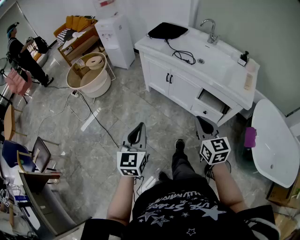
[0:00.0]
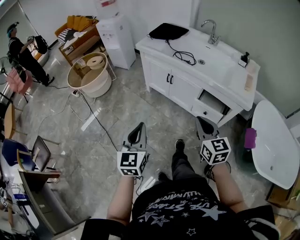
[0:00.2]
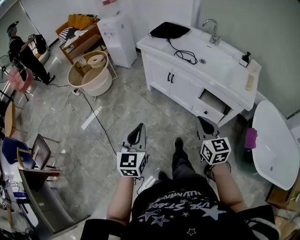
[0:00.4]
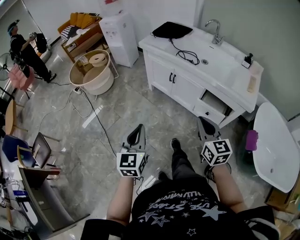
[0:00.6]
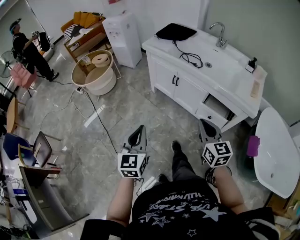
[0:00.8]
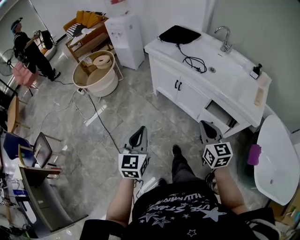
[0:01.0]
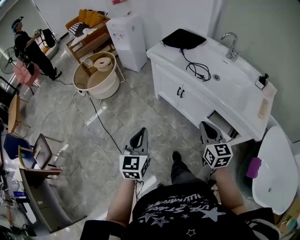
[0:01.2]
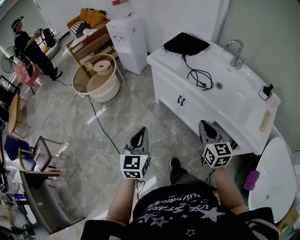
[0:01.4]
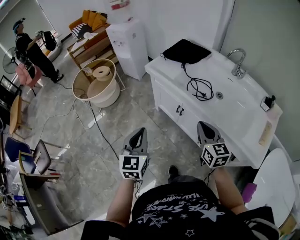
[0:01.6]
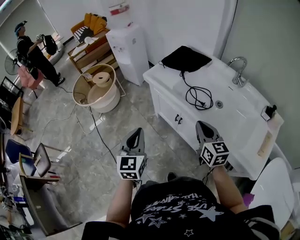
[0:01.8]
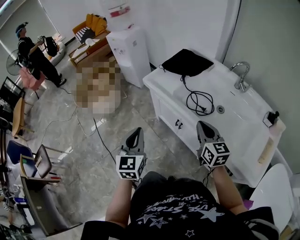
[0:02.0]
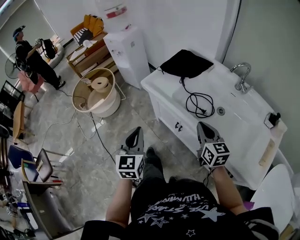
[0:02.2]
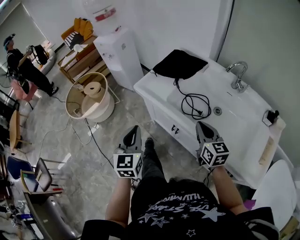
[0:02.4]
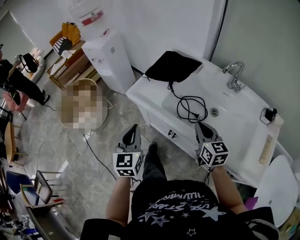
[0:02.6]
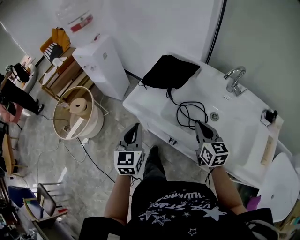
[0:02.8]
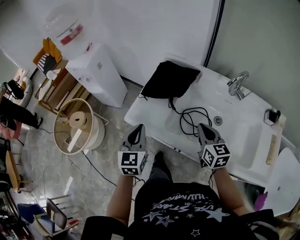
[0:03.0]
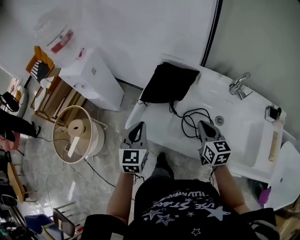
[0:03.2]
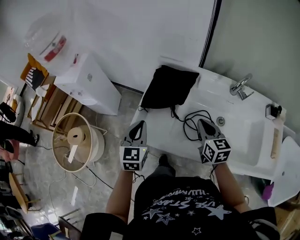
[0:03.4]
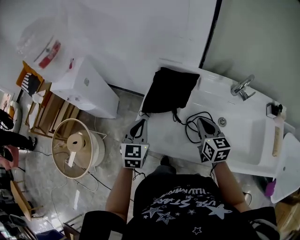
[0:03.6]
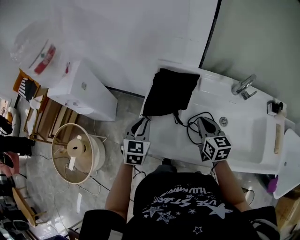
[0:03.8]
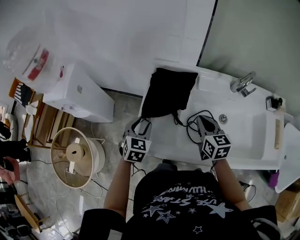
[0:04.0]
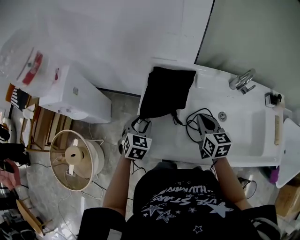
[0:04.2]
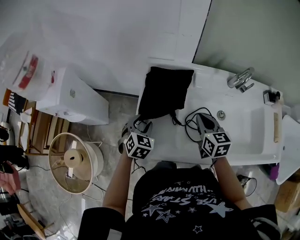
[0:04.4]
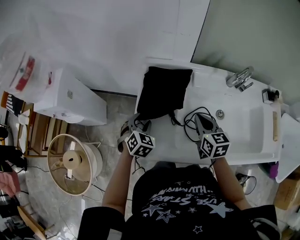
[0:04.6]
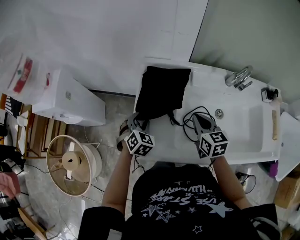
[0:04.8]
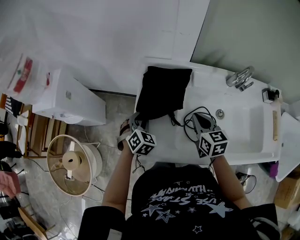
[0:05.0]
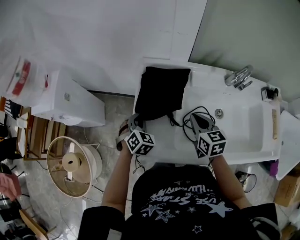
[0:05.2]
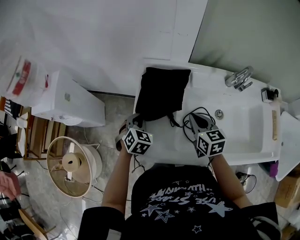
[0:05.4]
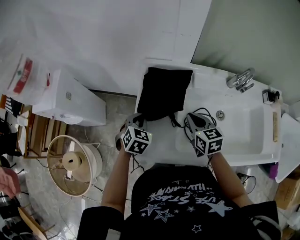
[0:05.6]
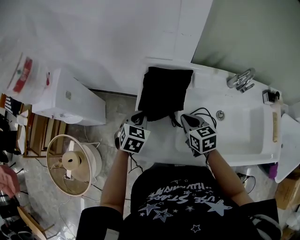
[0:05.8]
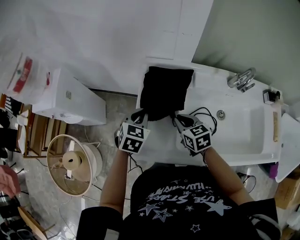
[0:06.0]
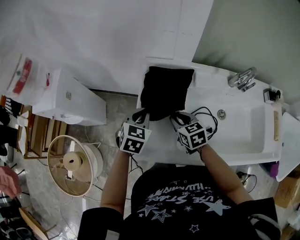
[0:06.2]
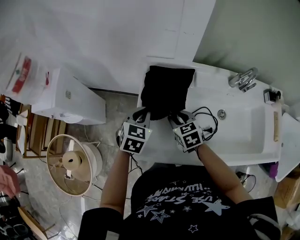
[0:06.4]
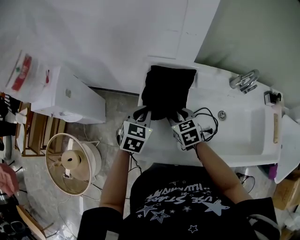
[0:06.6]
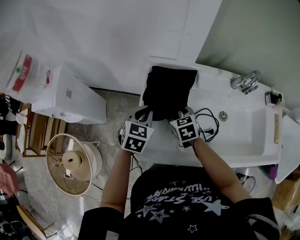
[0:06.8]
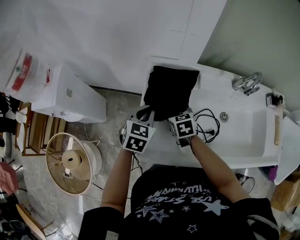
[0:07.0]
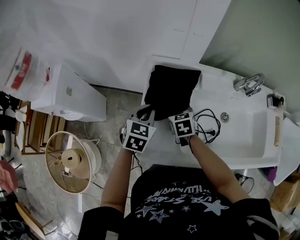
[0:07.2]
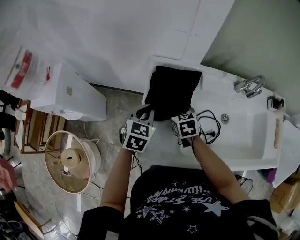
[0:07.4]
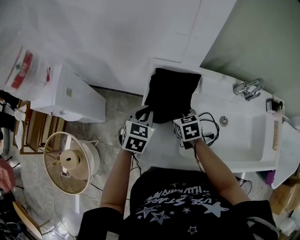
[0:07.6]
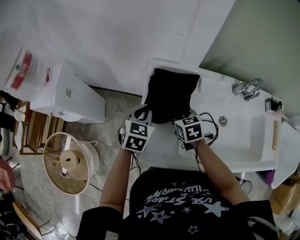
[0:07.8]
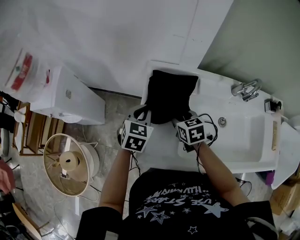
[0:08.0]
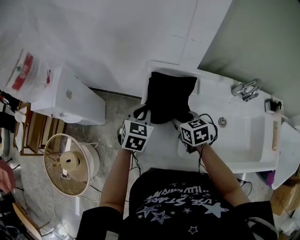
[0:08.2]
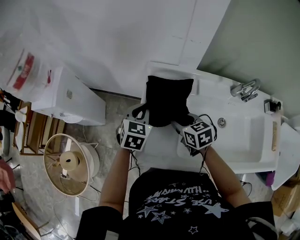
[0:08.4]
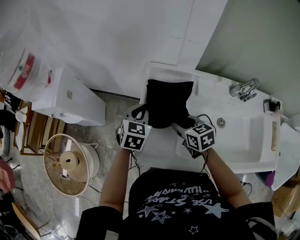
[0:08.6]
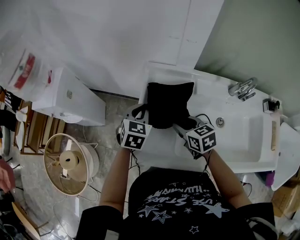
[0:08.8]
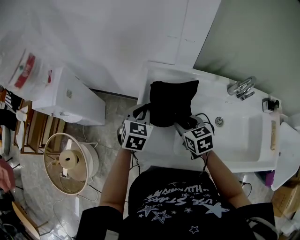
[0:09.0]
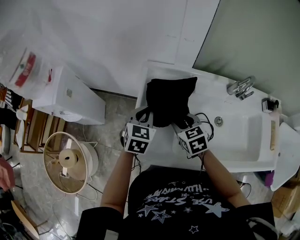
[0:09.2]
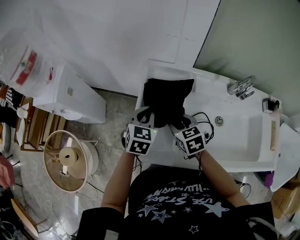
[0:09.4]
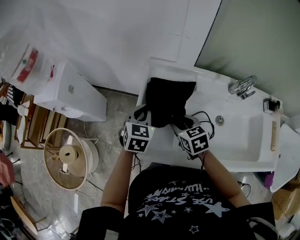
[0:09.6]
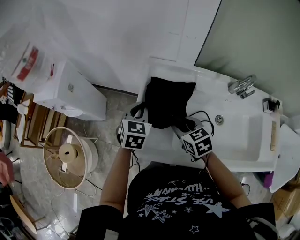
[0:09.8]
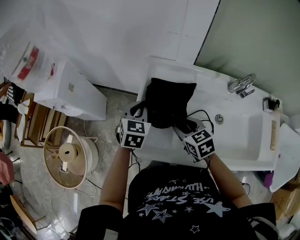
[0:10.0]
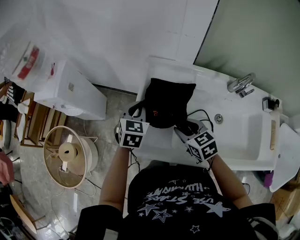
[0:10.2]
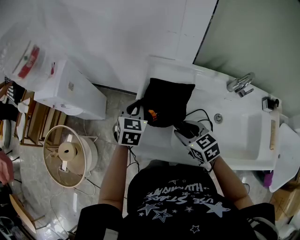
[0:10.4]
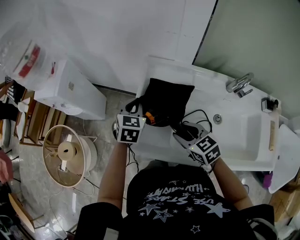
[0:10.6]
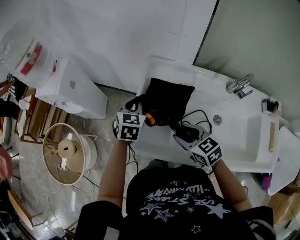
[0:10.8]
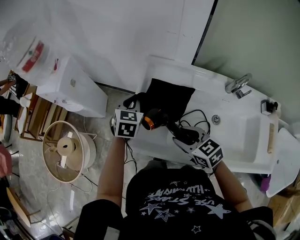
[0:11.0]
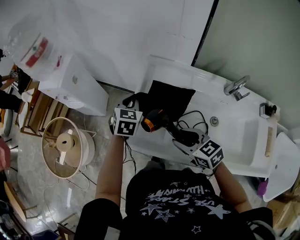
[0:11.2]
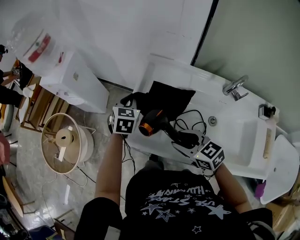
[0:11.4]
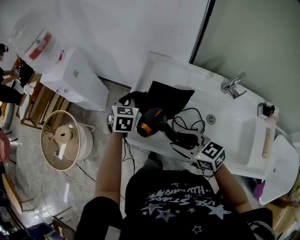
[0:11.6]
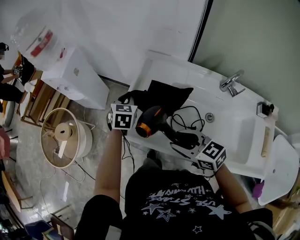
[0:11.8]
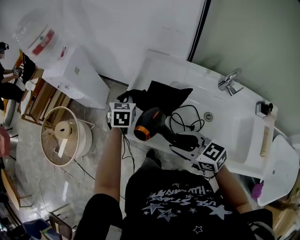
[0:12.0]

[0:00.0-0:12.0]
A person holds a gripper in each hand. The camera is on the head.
0:00.0 to 0:01.6: Both grippers travel together forward, some 30 cm.
0:01.6 to 0:03.0: Both grippers travel together forward, roughly 35 cm.
0:03.0 to 0:04.4: The right gripper moves forward, some 10 cm, while the left gripper moves forward and downward, about 25 cm, swivels about 40 degrees, and opens its fingers.
0:04.4 to 0:06.0: The right gripper heads to the left and downward, covering approximately 10 cm. Meanwhile the left gripper shifts by some 5 cm, and closes its fingers.
0:06.0 to 0:07.6: The right gripper shifts approximately 5 cm forward, and opens.
0:07.6 to 0:09.0: The right gripper heads backward and upward, covering roughly 10 cm.
0:09.0 to 0:10.4: The right gripper goes approximately 5 cm backward.
0:10.4 to 0:12.0: The right gripper travels backward and upward by approximately 15 cm, and swivels approximately 30 degrees.

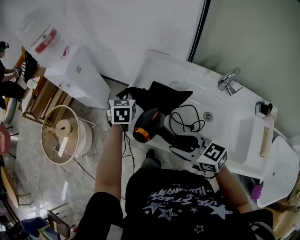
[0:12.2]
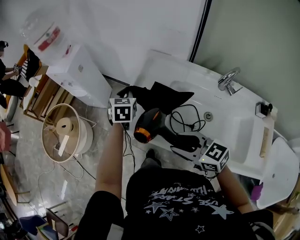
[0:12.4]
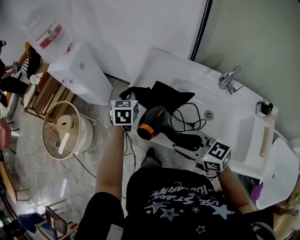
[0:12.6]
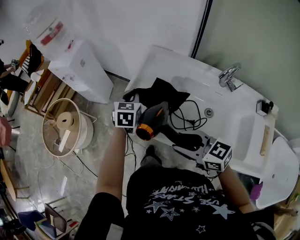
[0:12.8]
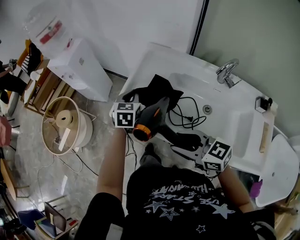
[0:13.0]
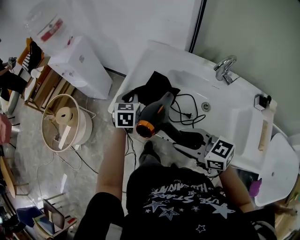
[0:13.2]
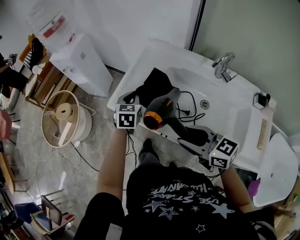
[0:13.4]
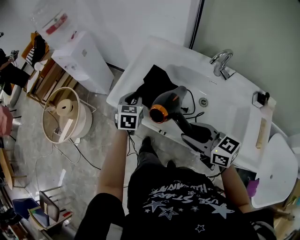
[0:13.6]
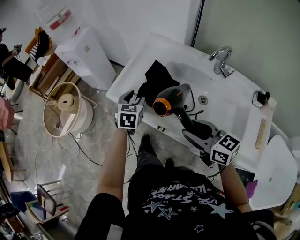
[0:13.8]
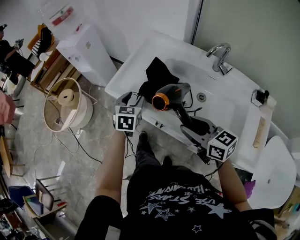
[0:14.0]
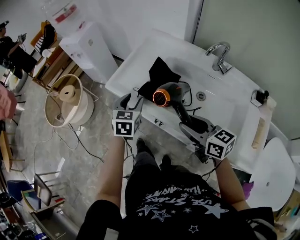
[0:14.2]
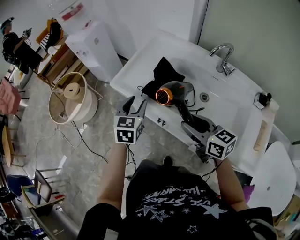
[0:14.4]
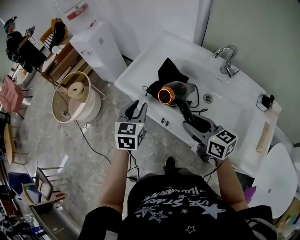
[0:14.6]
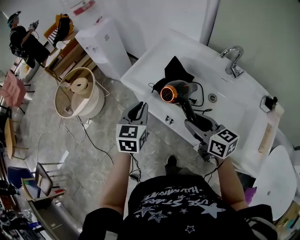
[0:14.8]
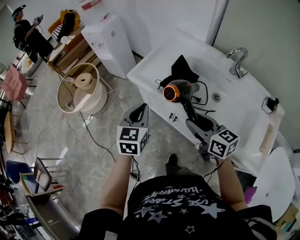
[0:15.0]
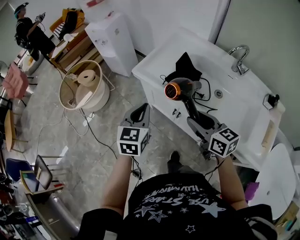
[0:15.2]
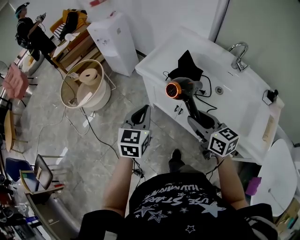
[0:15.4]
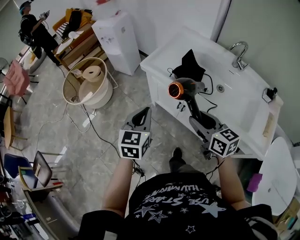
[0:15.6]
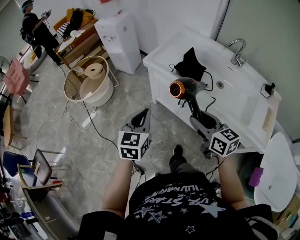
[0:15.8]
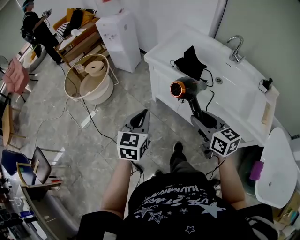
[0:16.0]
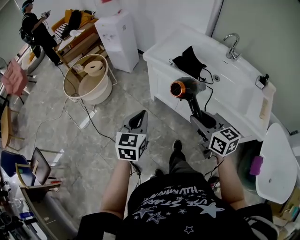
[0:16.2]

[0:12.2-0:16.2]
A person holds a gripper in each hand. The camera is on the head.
0:12.2 to 0:13.6: The left gripper travels backward by approximately 15 cm. Meanwhile the right gripper travels backward and to the right by about 10 cm.
0:13.6 to 0:14.8: The left gripper moves backward, approximately 15 cm, and opens and closes again.
0:14.8 to 0:16.2: Both grippers move backward and to the left, about 25 cm.

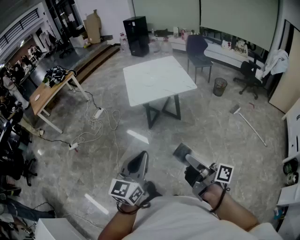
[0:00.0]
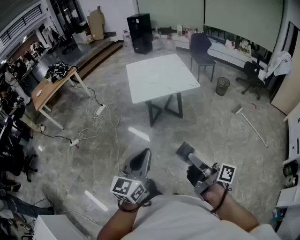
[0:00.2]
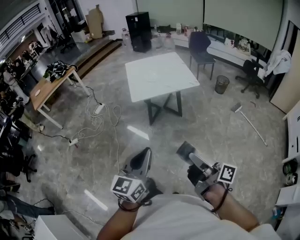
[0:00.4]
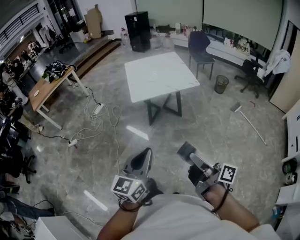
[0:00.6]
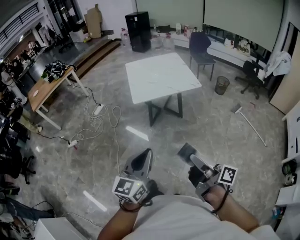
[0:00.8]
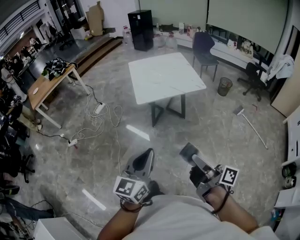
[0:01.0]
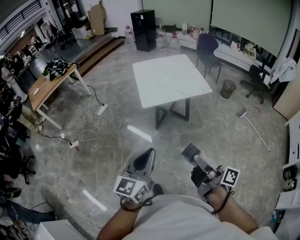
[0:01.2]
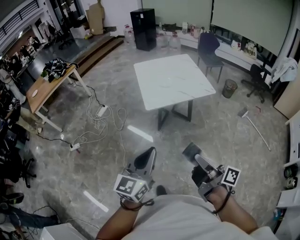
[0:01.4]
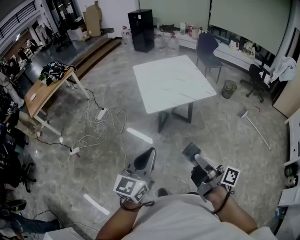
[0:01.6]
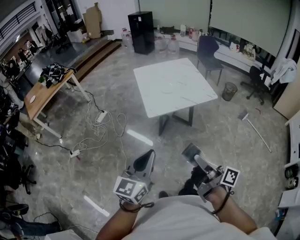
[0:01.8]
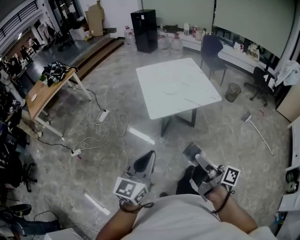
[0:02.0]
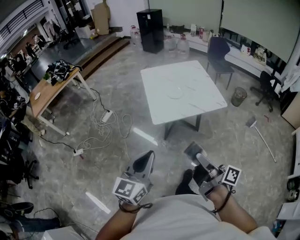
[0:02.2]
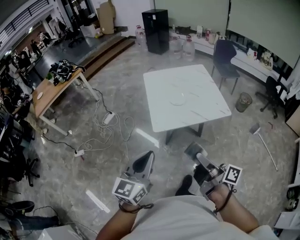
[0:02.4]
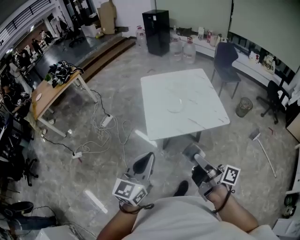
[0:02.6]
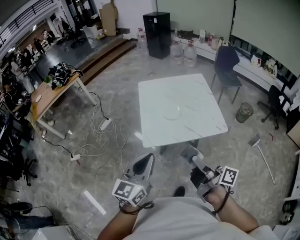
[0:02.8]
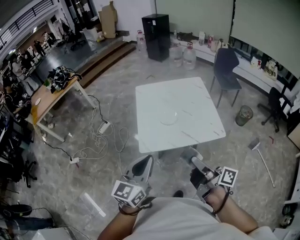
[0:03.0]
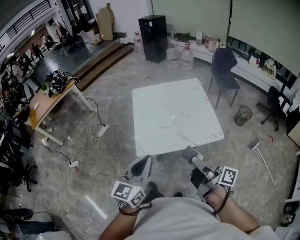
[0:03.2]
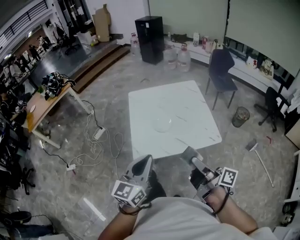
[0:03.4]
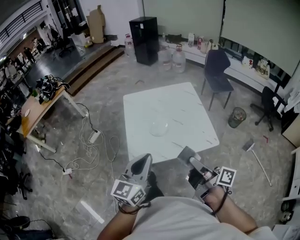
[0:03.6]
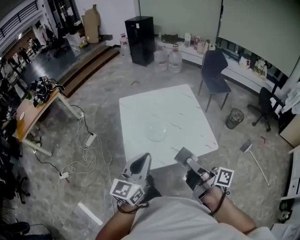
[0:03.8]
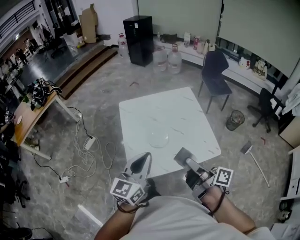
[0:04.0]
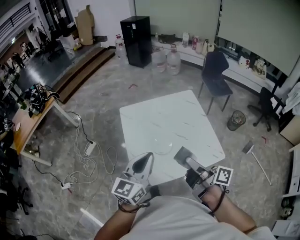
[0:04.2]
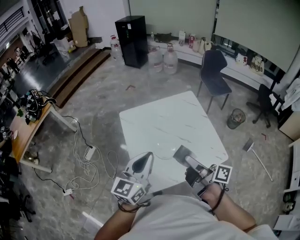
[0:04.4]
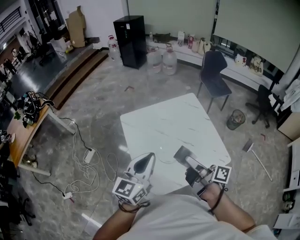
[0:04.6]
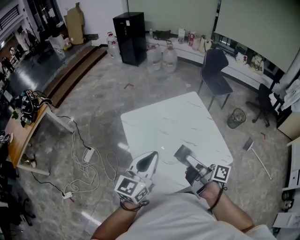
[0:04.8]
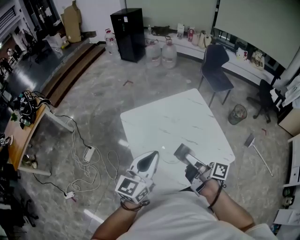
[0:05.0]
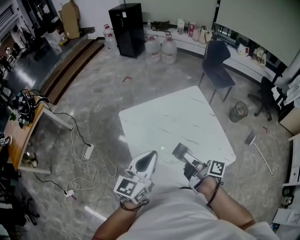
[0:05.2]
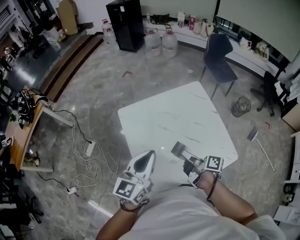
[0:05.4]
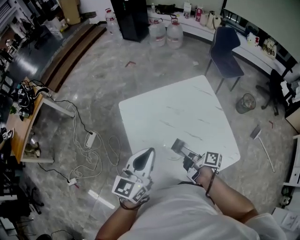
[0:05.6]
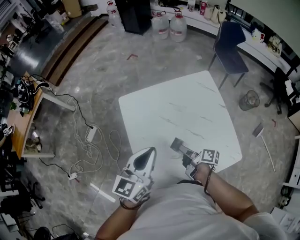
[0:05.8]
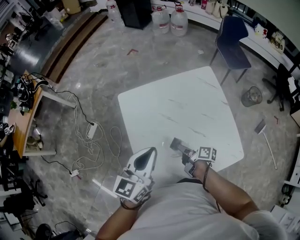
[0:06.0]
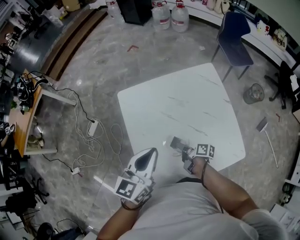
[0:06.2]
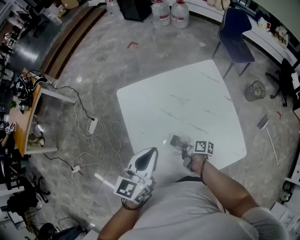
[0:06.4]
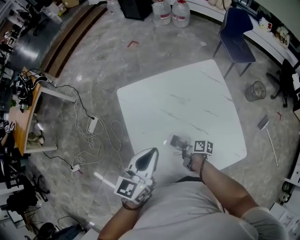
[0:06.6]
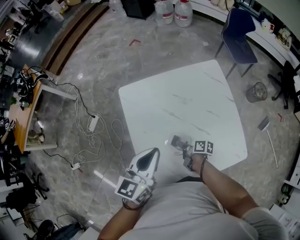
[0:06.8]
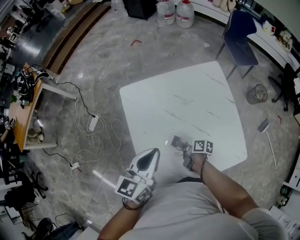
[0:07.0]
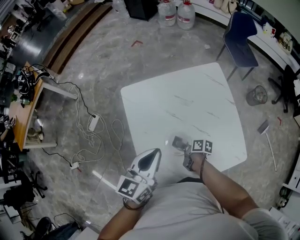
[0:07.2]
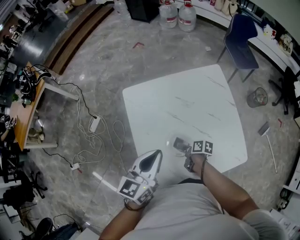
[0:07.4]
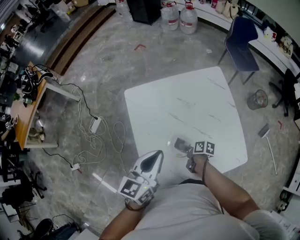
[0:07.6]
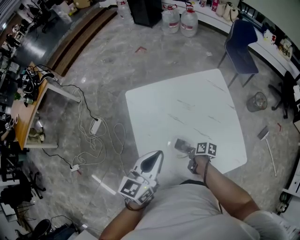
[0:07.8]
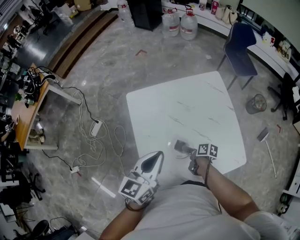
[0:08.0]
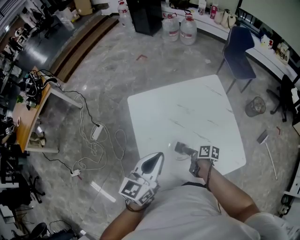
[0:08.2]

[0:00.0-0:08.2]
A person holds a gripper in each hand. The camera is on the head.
0:00.0 to 0:01.6: The left gripper changes place by some 25 cm.
0:01.6 to 0:03.2: The left gripper moves roughly 40 cm.
0:03.2 to 0:05.0: The left gripper changes place by about 40 cm.
0:05.0 to 0:06.6: The left gripper shifts approximately 10 cm downward.
0:06.6 to 0:08.2: The left gripper shifts by about 5 cm.
